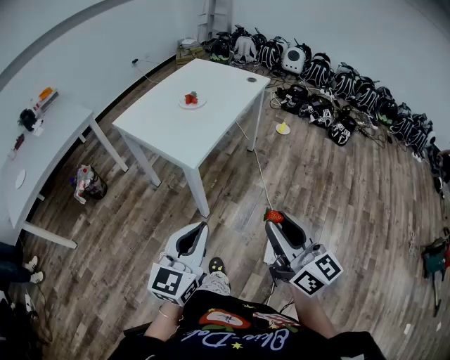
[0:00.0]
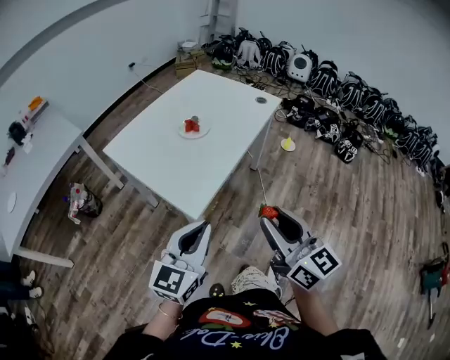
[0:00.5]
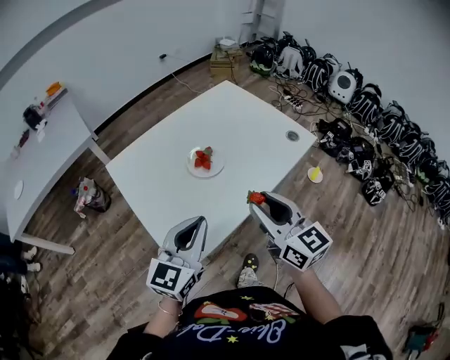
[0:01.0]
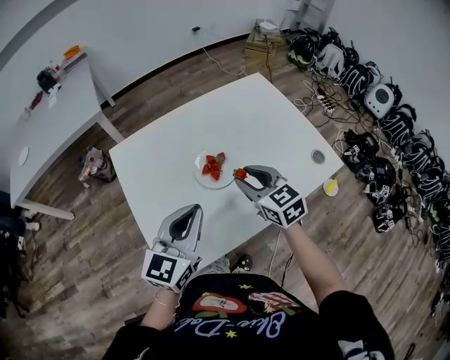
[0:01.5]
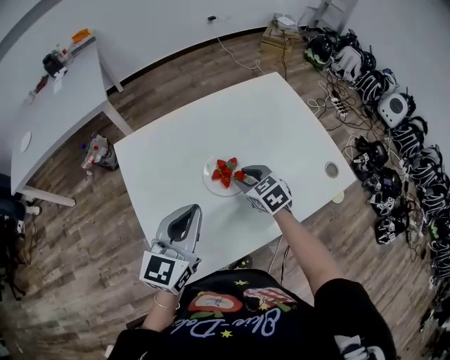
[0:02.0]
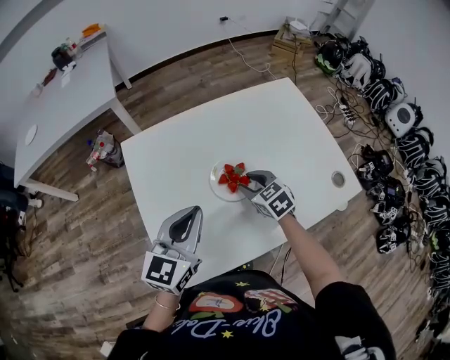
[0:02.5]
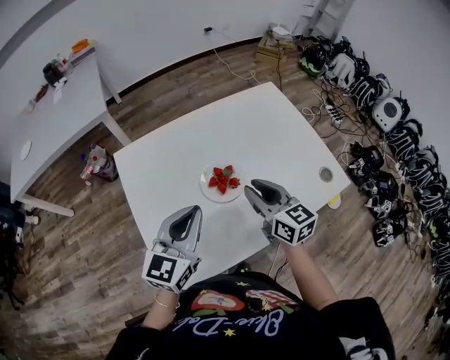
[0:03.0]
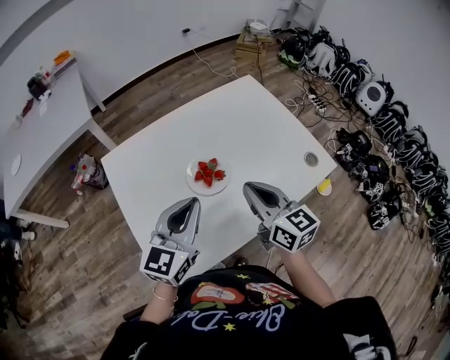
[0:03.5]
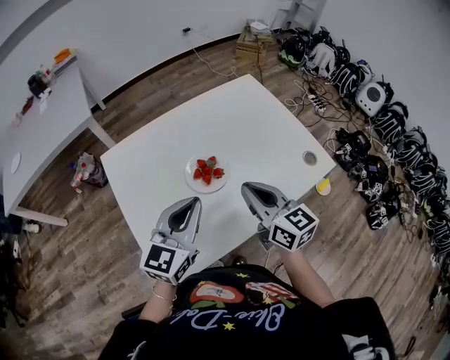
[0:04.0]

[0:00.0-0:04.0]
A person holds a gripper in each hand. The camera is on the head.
0:00.0 to 0:02.0: The two grippers travel together, some 70 cm. The left gripper changes its angle by approximately 30 degrees, while the right gripper tilts its fingers some 50 degrees downward.
0:02.0 to 0:04.0: The right gripper is displaced upward and backward by about 20 cm, angles its fingers upward, by approximately 30 degrees, and closes up.

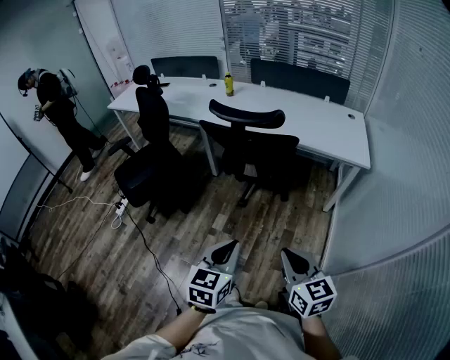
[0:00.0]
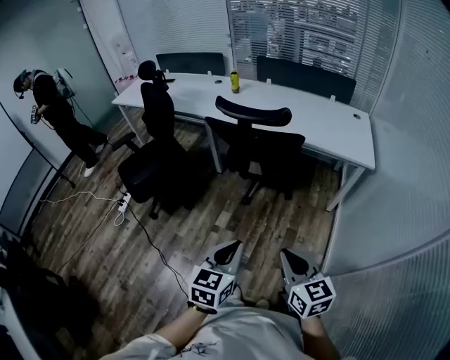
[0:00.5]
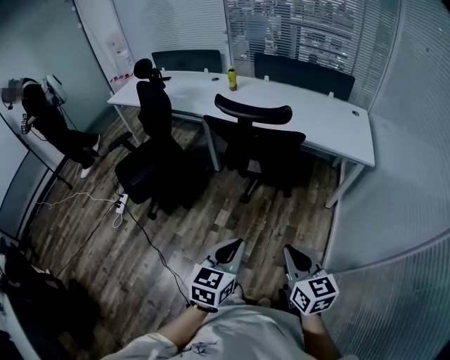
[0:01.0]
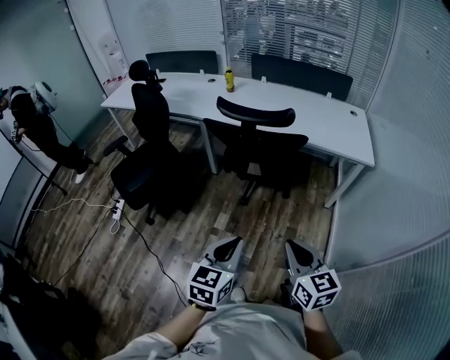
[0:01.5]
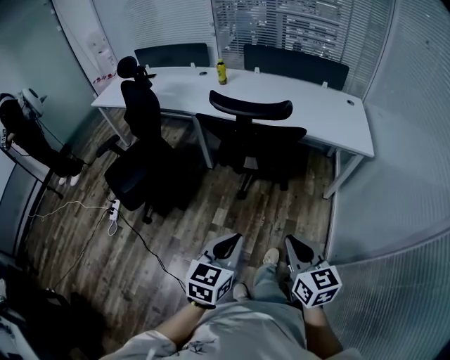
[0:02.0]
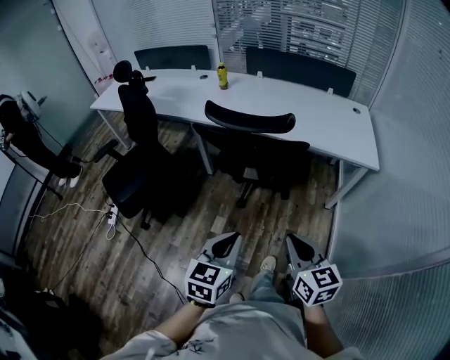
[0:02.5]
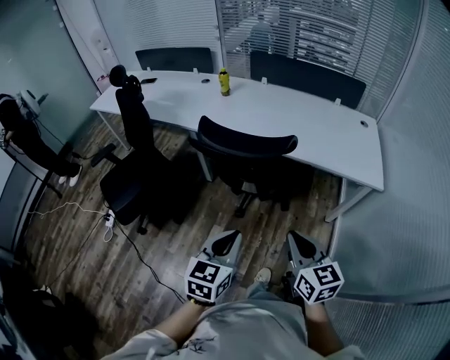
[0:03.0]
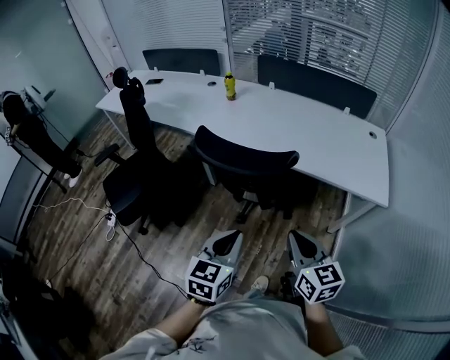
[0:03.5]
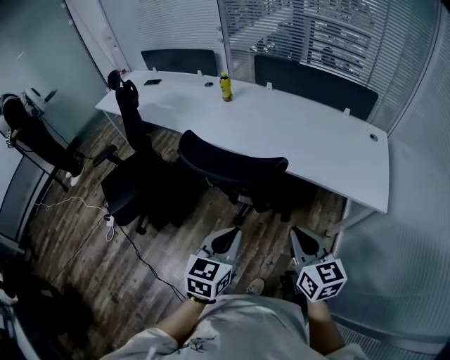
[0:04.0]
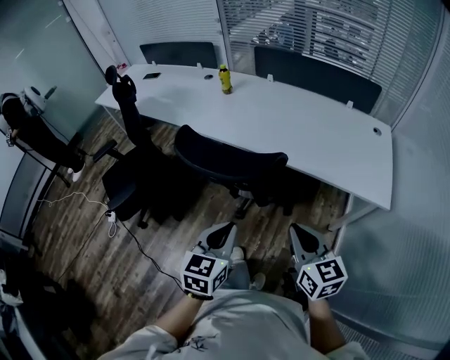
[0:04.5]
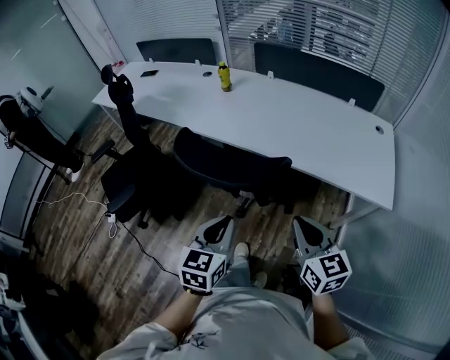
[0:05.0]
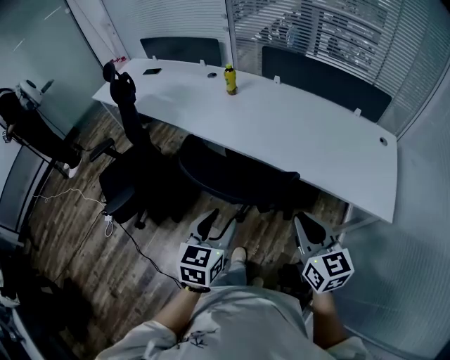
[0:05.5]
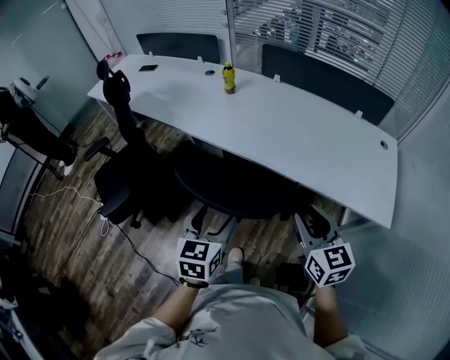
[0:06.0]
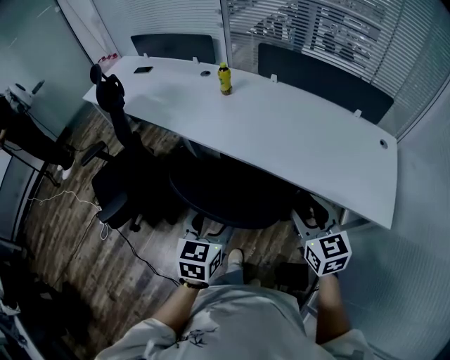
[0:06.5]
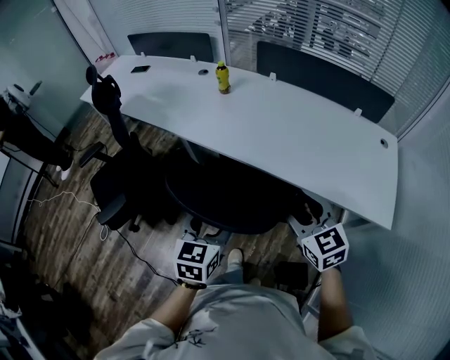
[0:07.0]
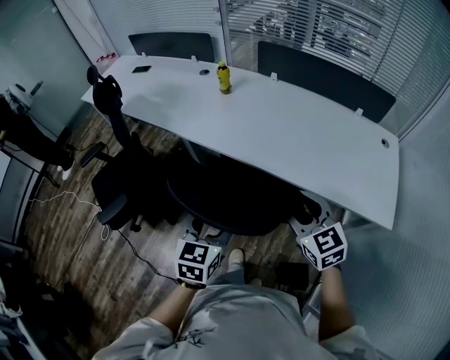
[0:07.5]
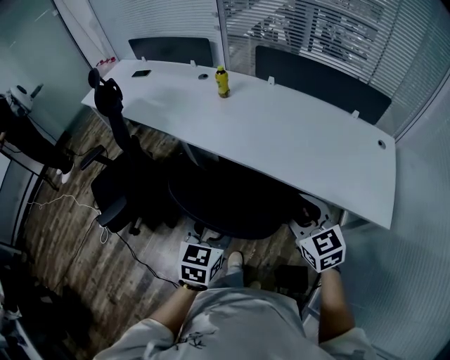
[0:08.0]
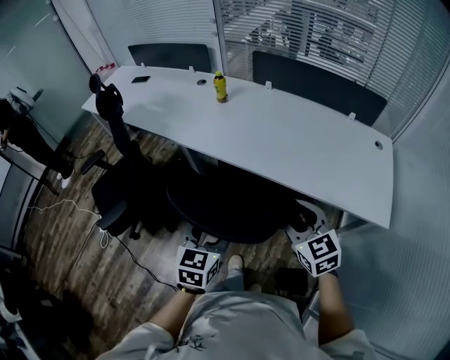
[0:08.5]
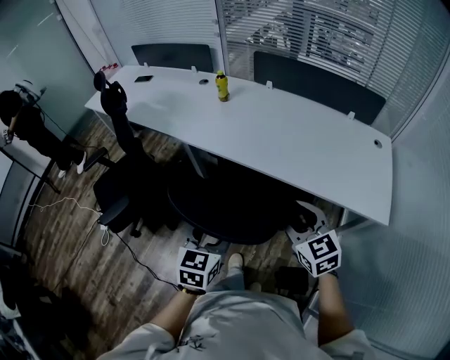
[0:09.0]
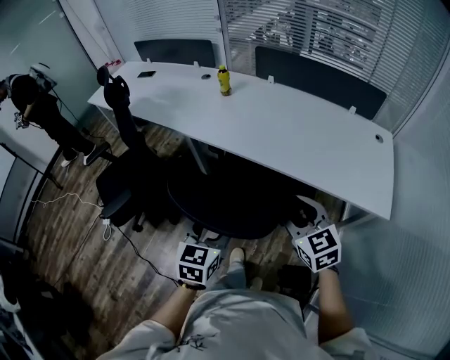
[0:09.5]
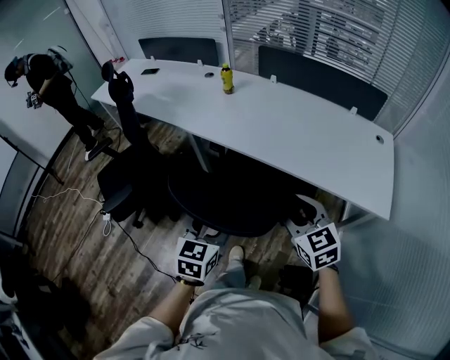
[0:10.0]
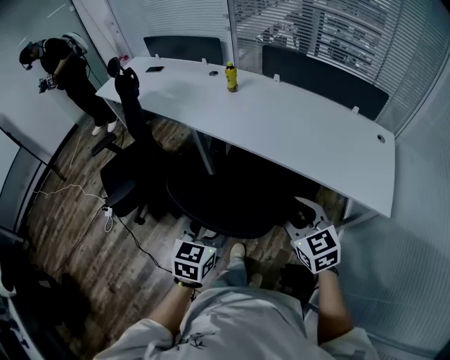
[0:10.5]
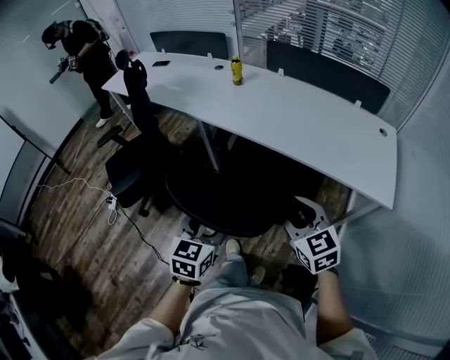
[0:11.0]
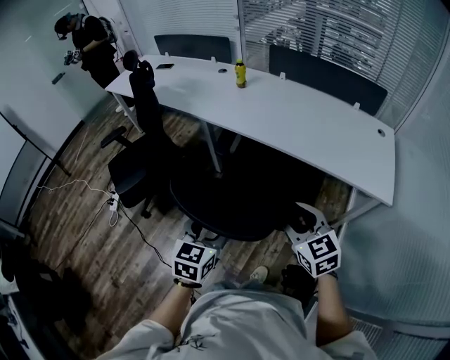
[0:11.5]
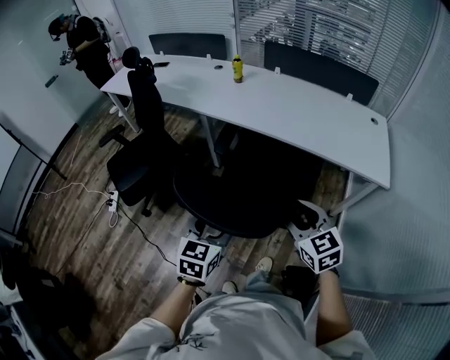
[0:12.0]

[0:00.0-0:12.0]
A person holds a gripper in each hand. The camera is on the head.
0:00.0 to 0:02.0: Both grippers travel together forward and to the left, about 10 cm.
0:02.0 to 0:04.0: Both grippers travel together forward, roughly 30 cm.
0:04.0 to 0:06.0: The left gripper travels forward and to the left by about 15 cm, and opens its fingers; the right gripper heads forward, covering about 15 cm, and opens its fingers.
0:06.0 to 0:08.0: The right gripper ends up about 5 cm from where it was.
0:08.0 to 0:10.0: The two grippers go approximately 5 cm backward.
0:10.0 to 0:12.0: Both grippers travel together backward and to the left, some 20 cm.

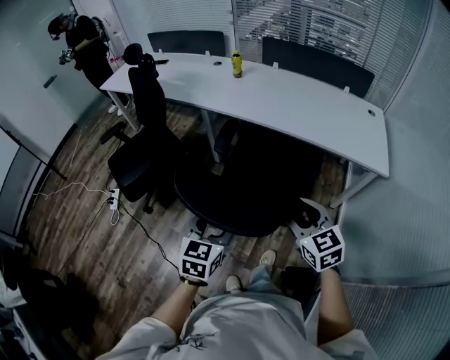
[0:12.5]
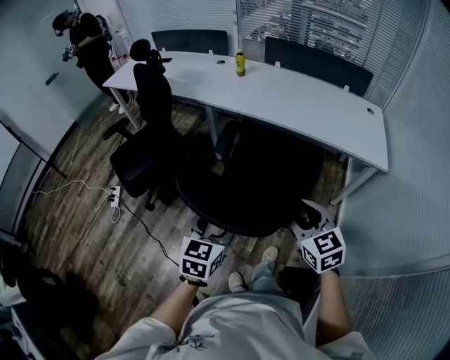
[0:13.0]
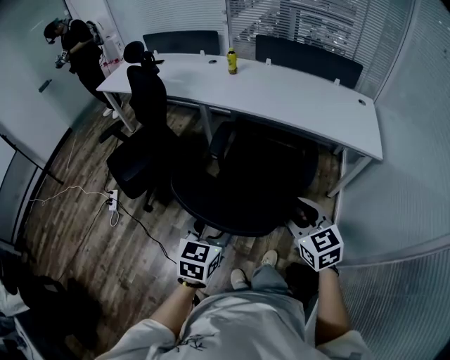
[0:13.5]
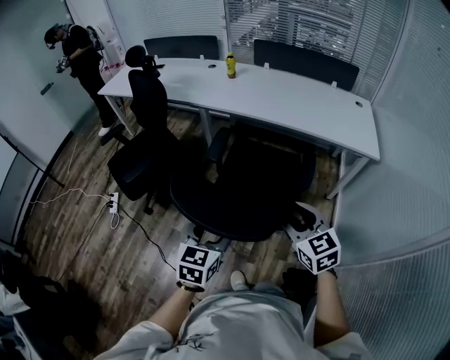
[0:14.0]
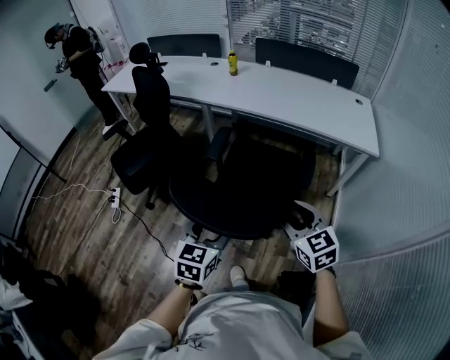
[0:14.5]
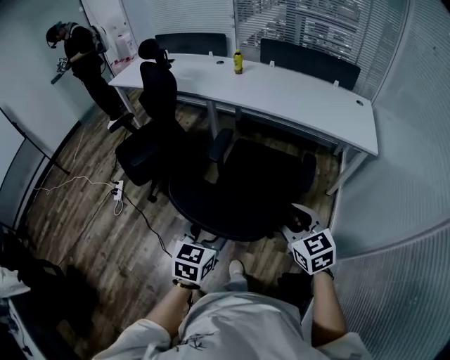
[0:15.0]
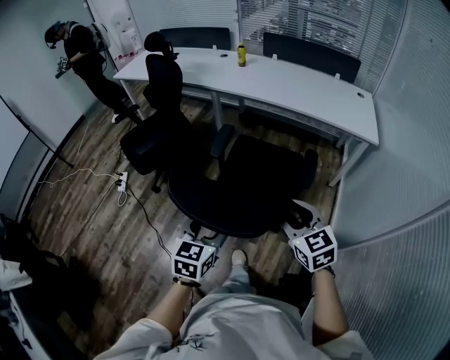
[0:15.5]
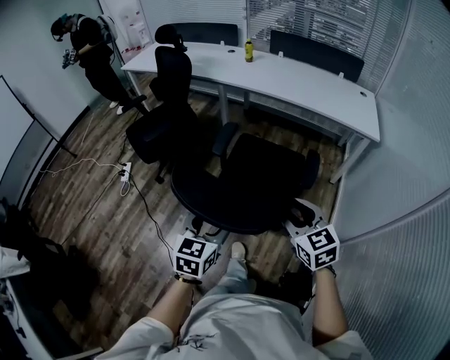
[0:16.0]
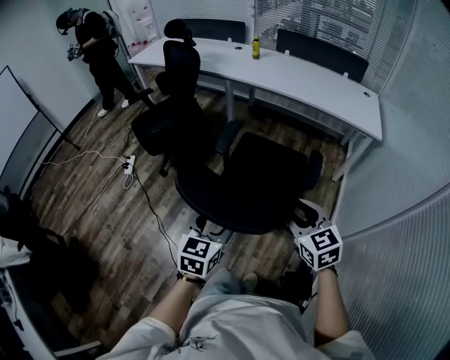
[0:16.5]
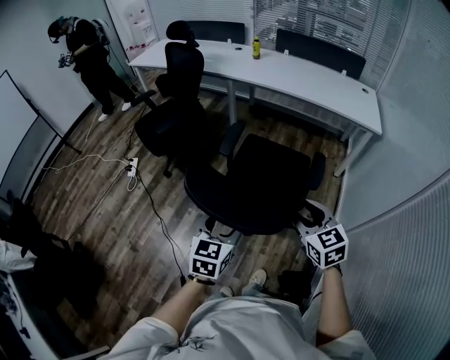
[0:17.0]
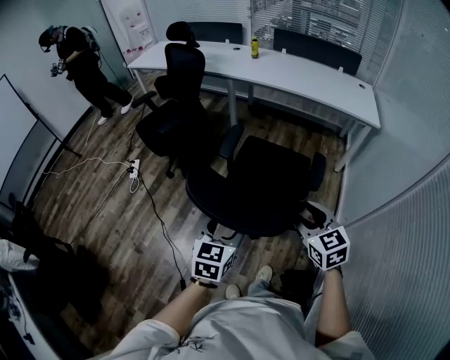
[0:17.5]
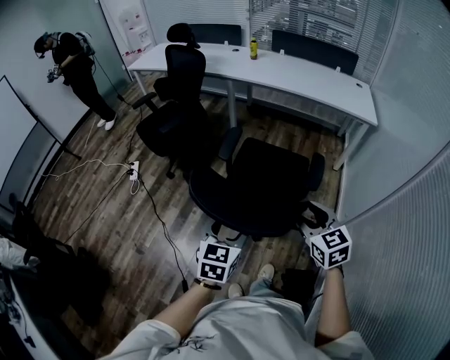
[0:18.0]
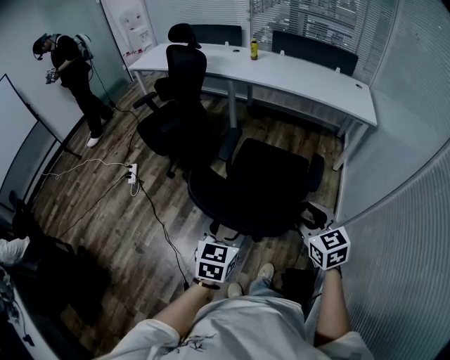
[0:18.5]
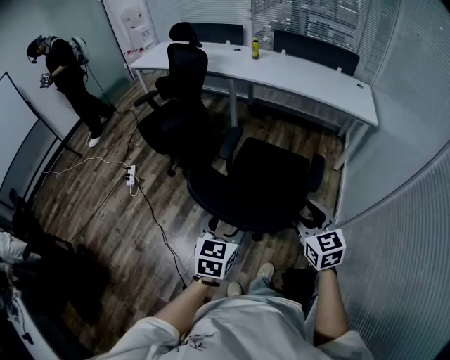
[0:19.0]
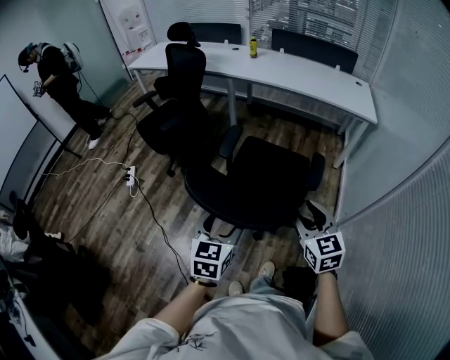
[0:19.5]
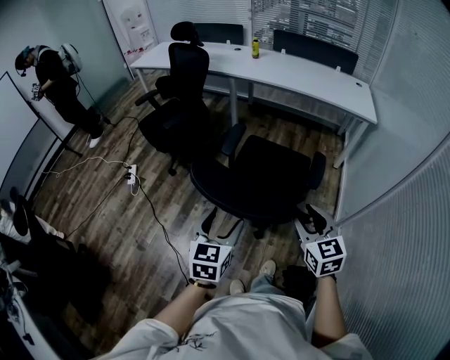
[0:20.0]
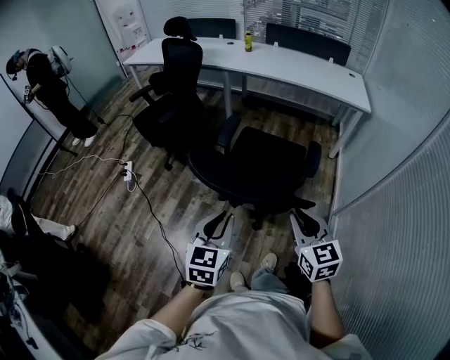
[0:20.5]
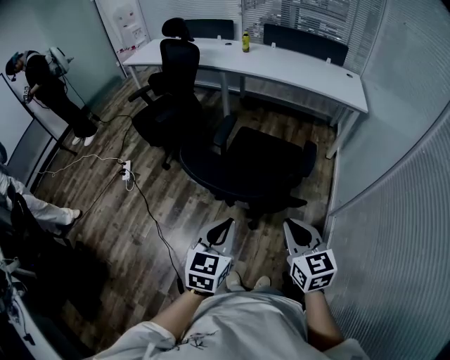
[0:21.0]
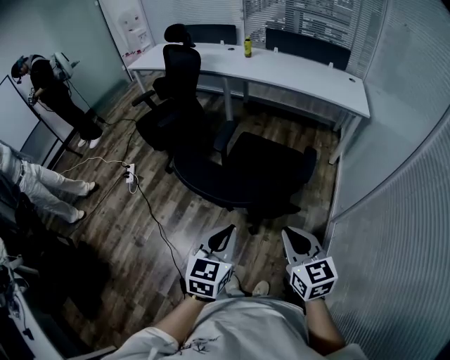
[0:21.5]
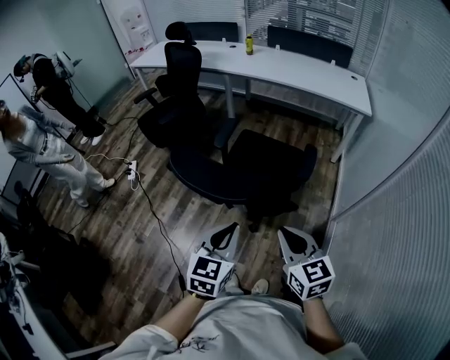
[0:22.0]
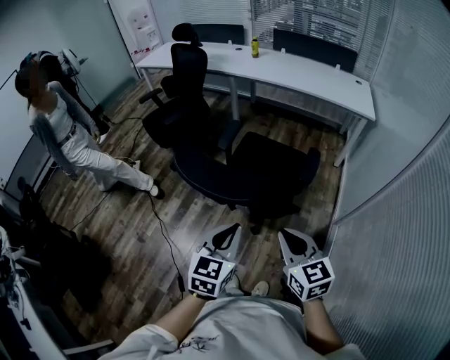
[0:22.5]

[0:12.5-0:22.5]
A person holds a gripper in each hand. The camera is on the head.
0:12.5 to 0:14.5: Both grippers travel together backward, approximately 15 cm.
0:14.5 to 0:16.5: Both grippers move backward, about 20 cm.
0:16.5 to 0:18.5: The two grippers go approximately 10 cm backward and to the left.
0:18.5 to 0:20.5: Both grippers move backward, about 5 cm. The right gripper closes up; the left gripper closes its fingers.
0:20.5 to 0:22.5: The right gripper moves backward, some 5 cm; the left gripper goes roughly 10 cm to the right.

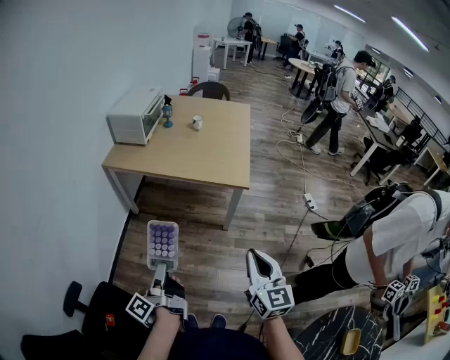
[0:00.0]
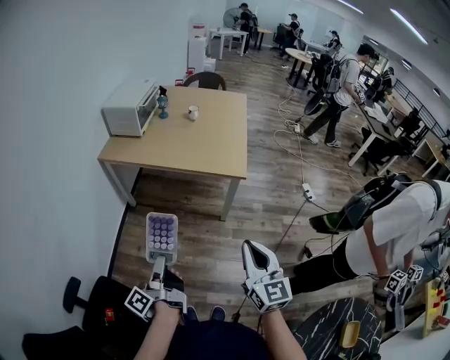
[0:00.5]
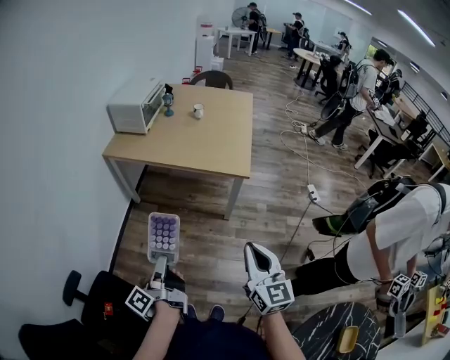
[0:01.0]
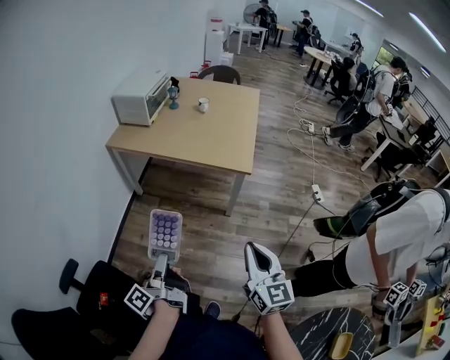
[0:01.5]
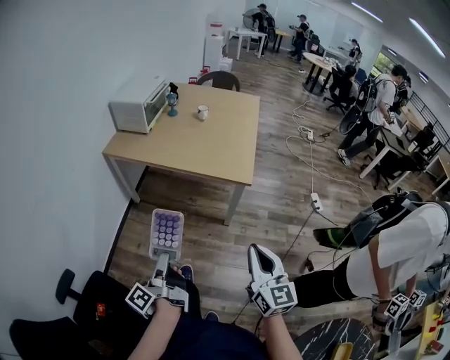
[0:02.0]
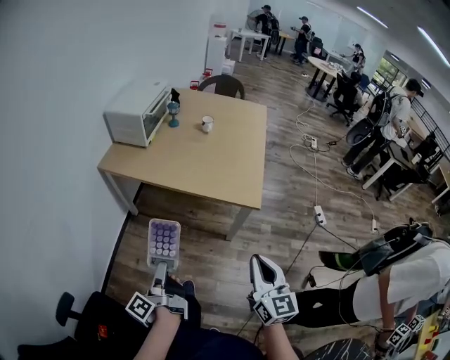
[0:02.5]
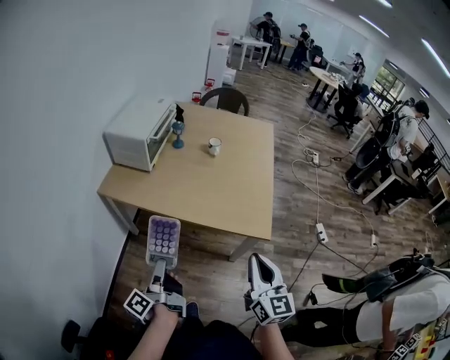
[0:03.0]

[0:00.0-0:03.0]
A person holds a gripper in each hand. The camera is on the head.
0:01.5 to 0:03.0: The right gripper ends up about 35 cm from where it was.
